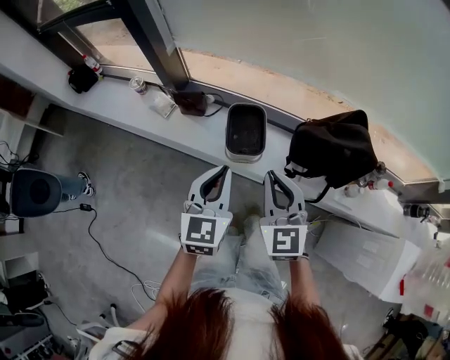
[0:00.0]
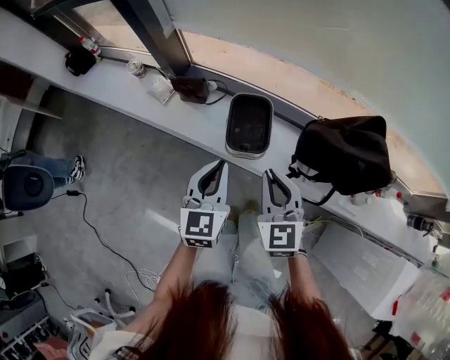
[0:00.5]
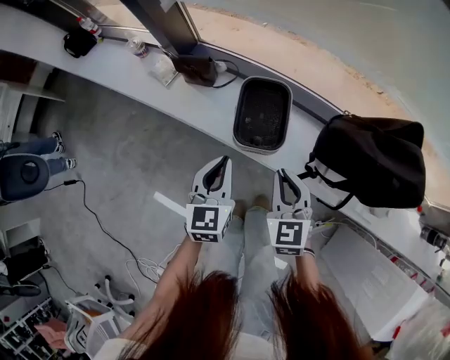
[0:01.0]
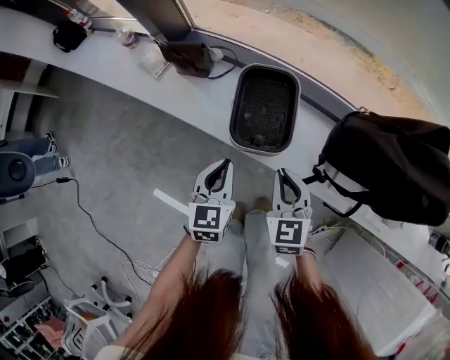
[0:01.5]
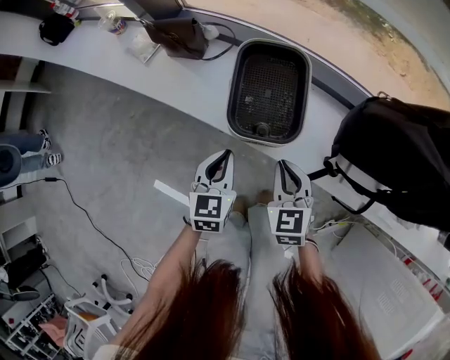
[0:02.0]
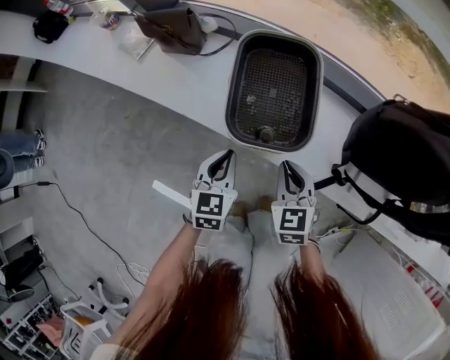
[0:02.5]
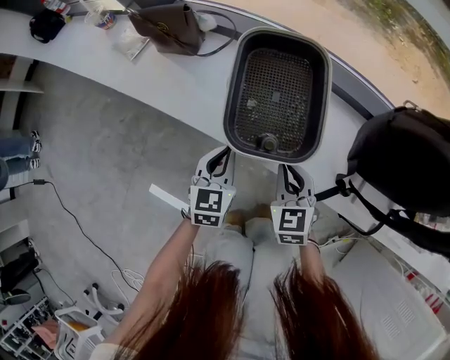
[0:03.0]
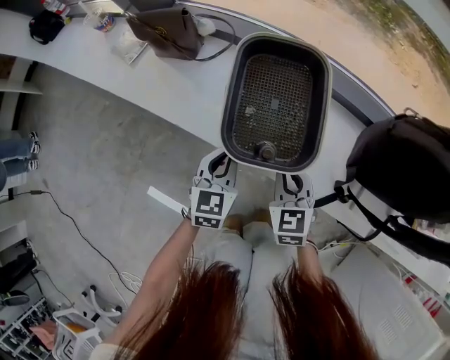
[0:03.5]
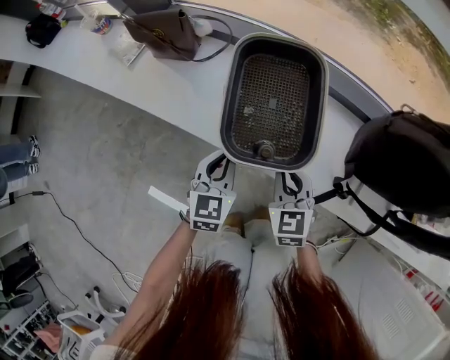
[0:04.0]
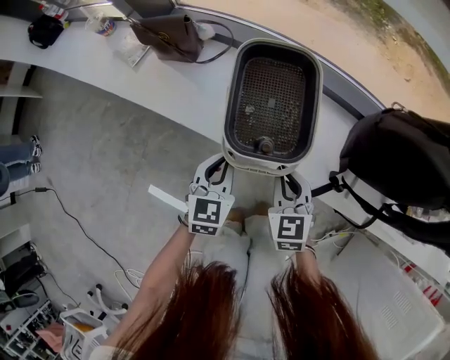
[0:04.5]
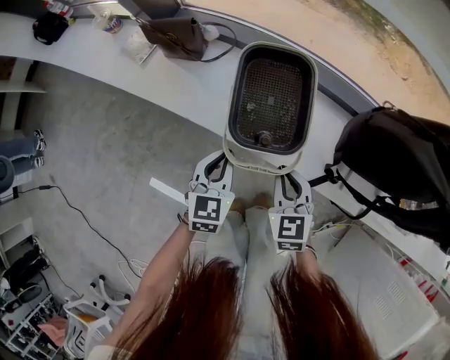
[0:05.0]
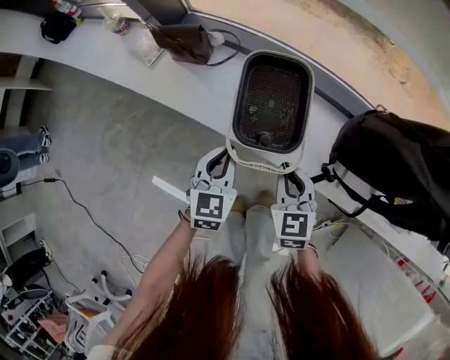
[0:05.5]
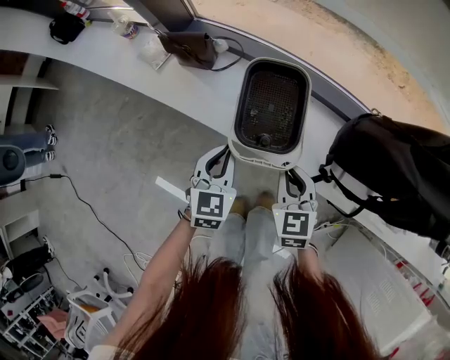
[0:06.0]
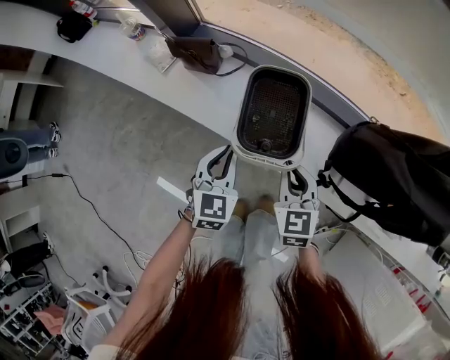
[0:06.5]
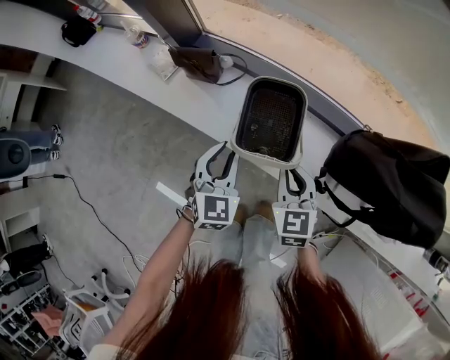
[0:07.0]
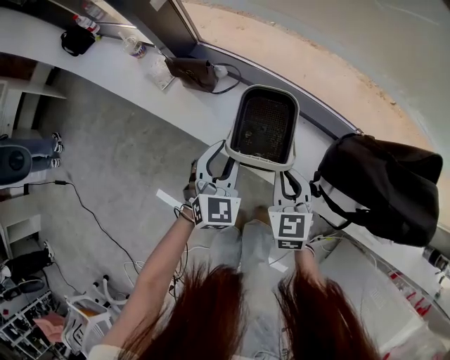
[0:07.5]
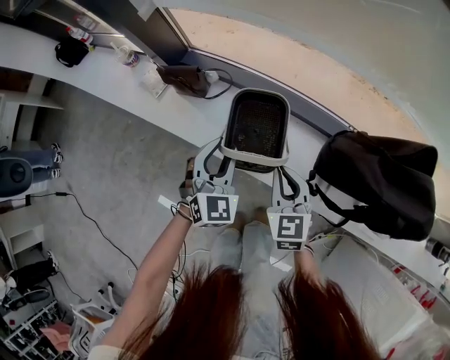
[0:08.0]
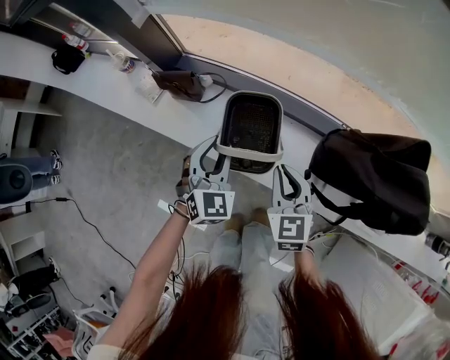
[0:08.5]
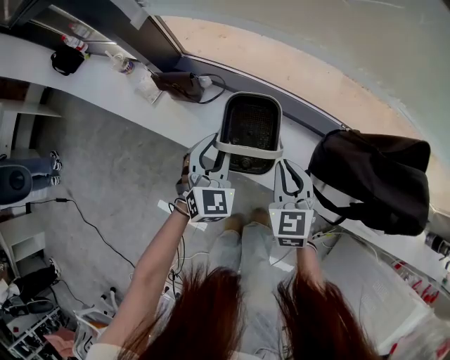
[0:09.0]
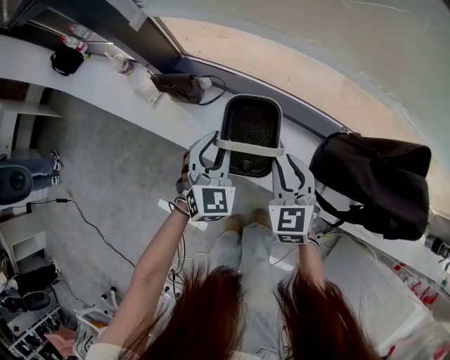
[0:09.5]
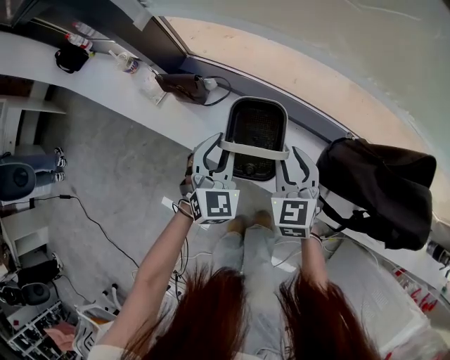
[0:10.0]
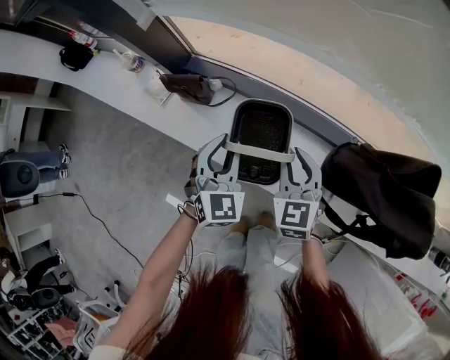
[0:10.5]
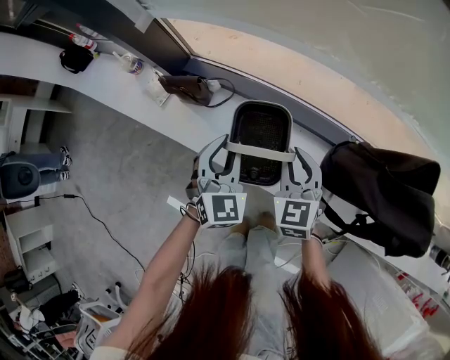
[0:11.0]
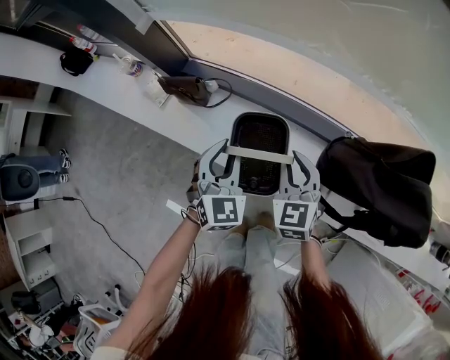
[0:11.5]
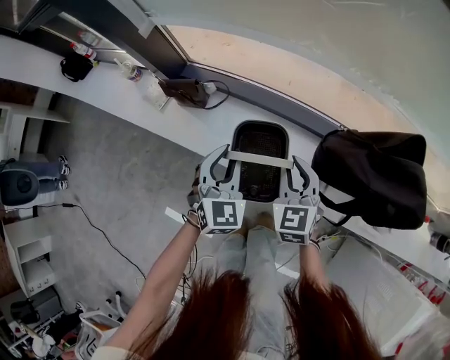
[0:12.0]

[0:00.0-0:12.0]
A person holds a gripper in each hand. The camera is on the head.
0:00.0 to 0:02.0: Both grippers travel together downward, roughly 40 cm. The right gripper rotates approximately 20 degrees.
0:02.0 to 0:04.0: The left gripper goes roughly 10 cm downward and forward; the right gripper moves downward, some 10 cm.
0:04.0 to 0:06.0: Both grippers travel together upward, about 15 cm.
0:06.0 to 0:08.0: The left gripper goes some 10 cm upward and forward, swivels about 30 degrees, and opens. The right gripper travels upward by some 5 cm.
0:08.0 to 0:10.0: The right gripper moves forward, approximately 5 cm, and opens its fingers.
0:10.0 to 0:12.0: The left gripper ends up roughly 5 cm from where it was. The right gripper shifts by roughly 5 cm.

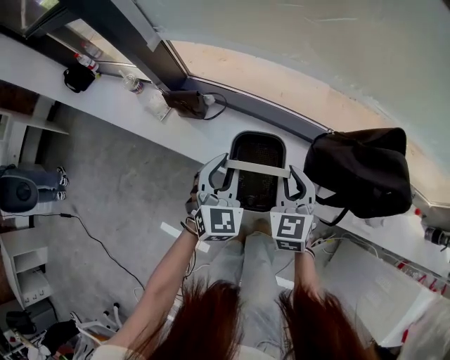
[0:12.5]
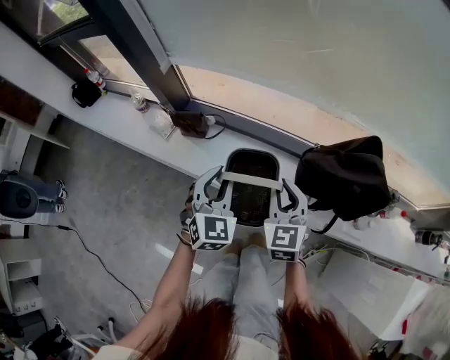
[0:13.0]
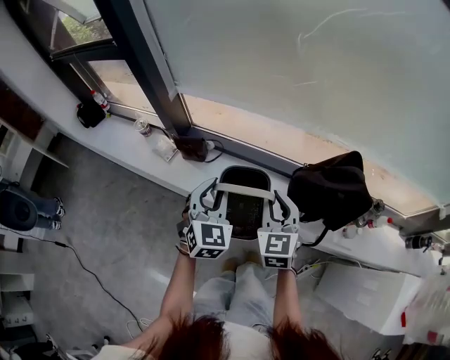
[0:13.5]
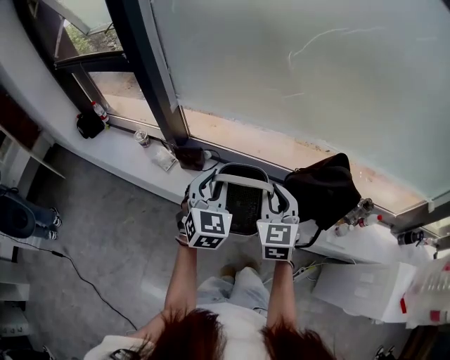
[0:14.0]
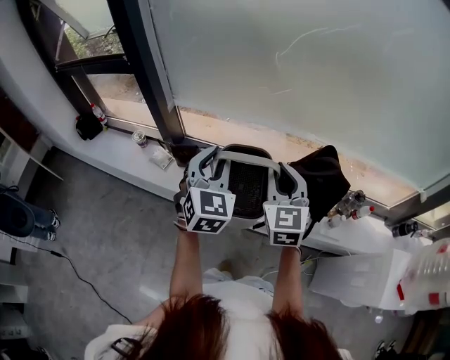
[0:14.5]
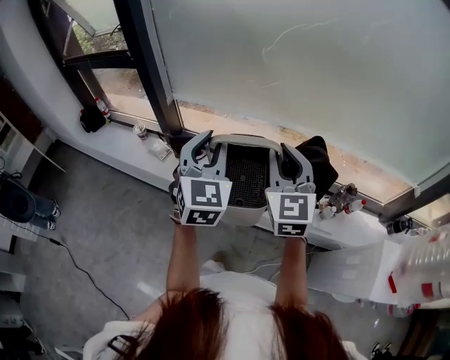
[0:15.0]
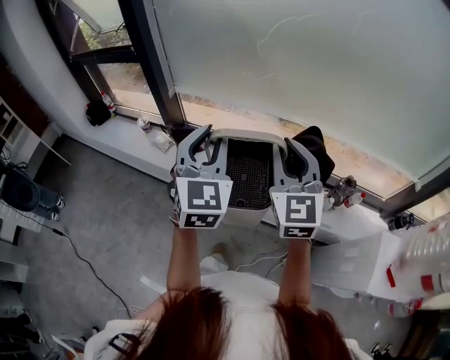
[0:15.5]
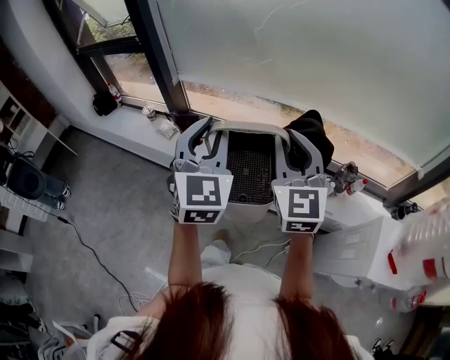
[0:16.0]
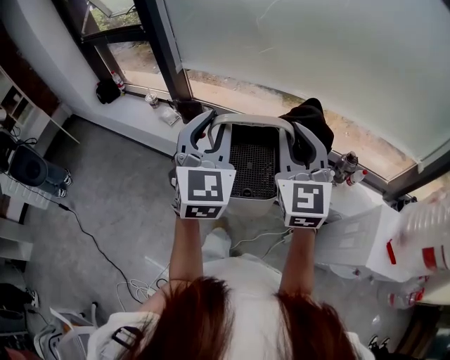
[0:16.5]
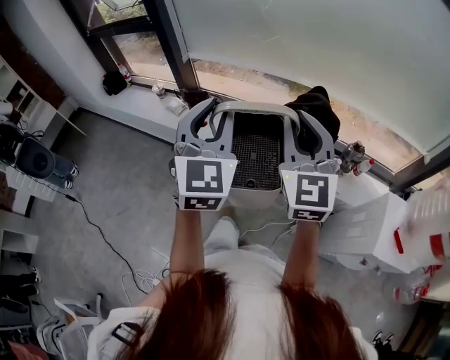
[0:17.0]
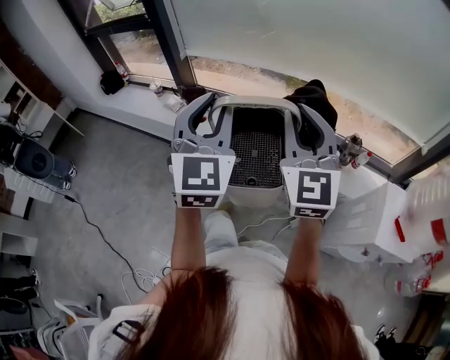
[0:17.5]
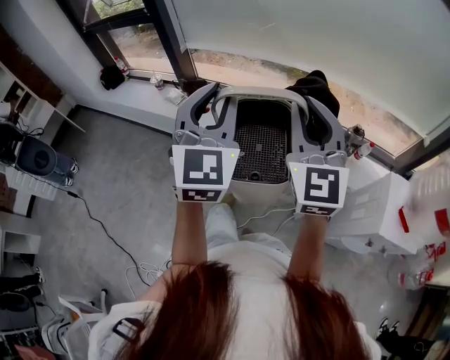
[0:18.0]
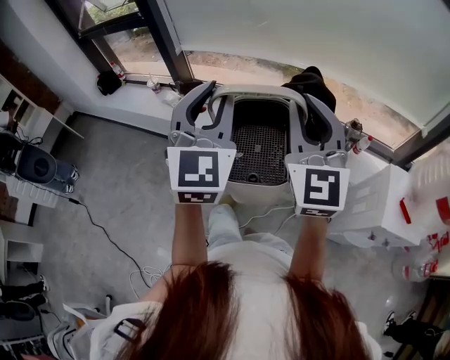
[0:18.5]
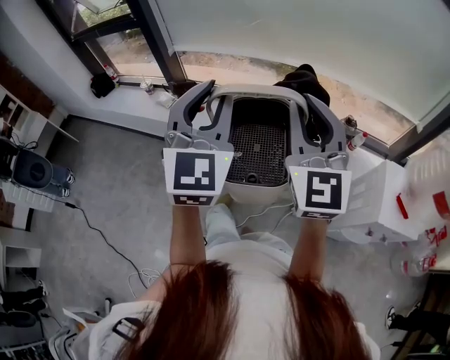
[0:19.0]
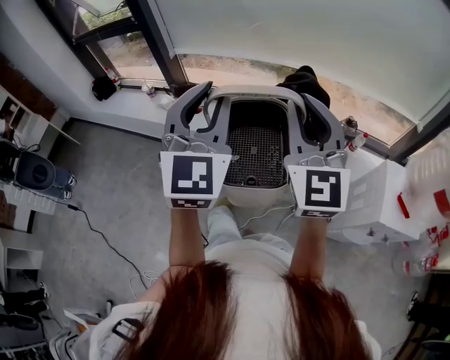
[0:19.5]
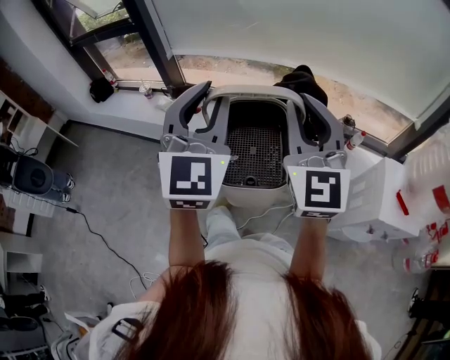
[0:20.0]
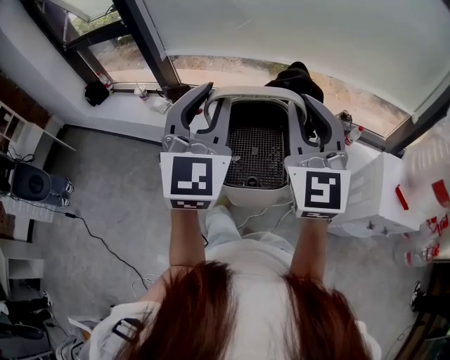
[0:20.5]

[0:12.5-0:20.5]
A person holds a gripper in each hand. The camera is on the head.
0:12.5 to 0:14.5: The grippers both shift upward by approximately 30 cm.
0:14.5 to 0:16.5: The left gripper goes roughly 25 cm backward and upward. Meanwhile the right gripper shifts about 25 cm backward, upward and to the right.
0:16.5 to 0:18.5: The two grippers go roughly 10 cm backward.
0:18.5 to 0:20.5: The grippers stay close to where they were, moving slightly.

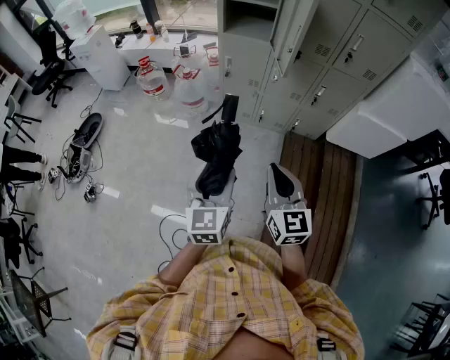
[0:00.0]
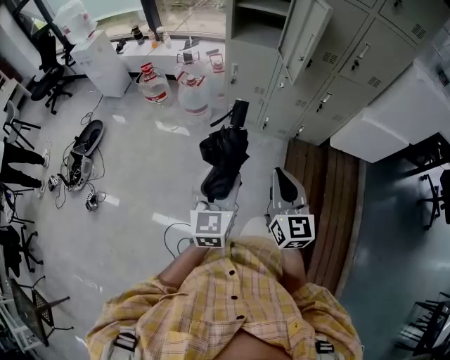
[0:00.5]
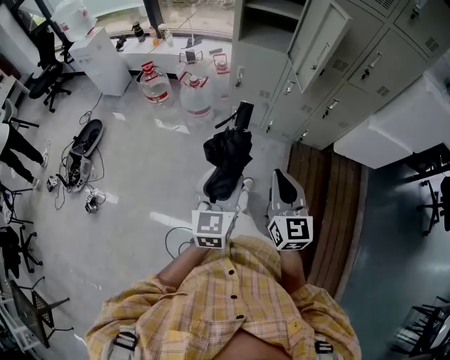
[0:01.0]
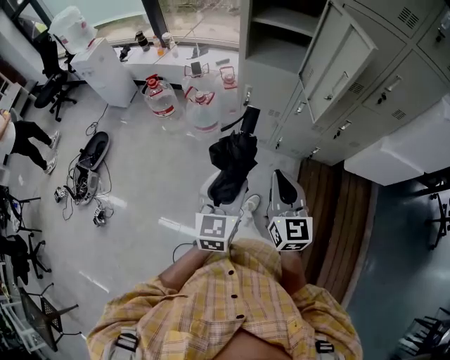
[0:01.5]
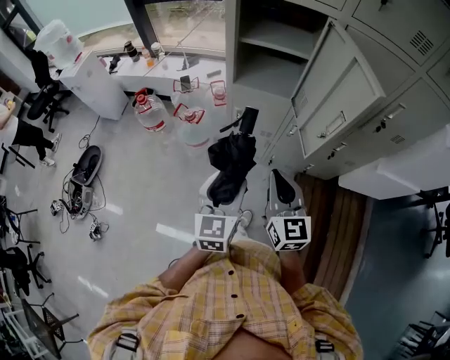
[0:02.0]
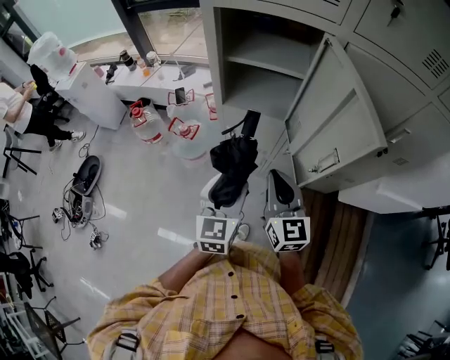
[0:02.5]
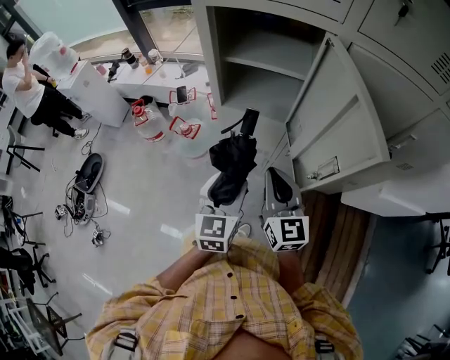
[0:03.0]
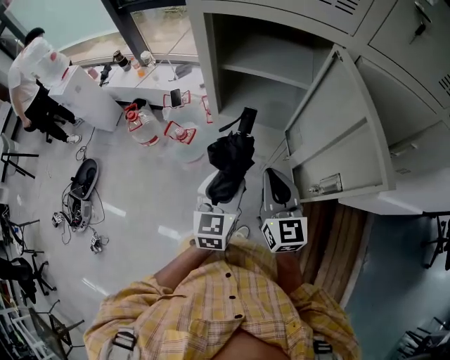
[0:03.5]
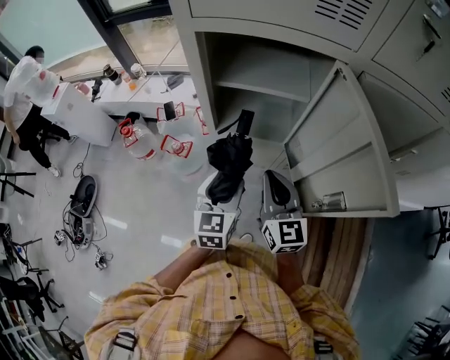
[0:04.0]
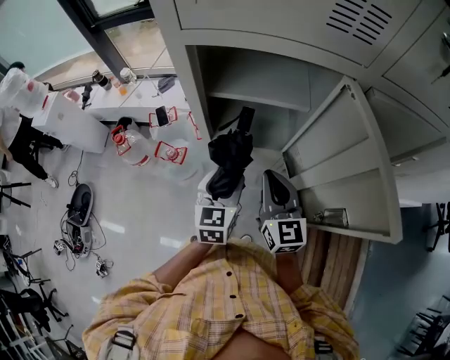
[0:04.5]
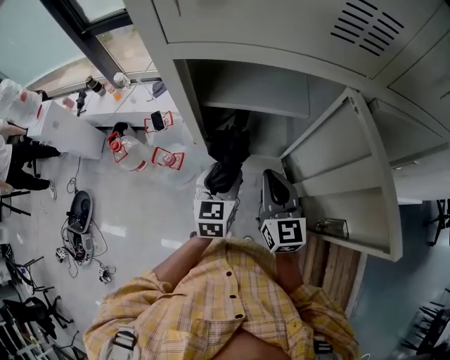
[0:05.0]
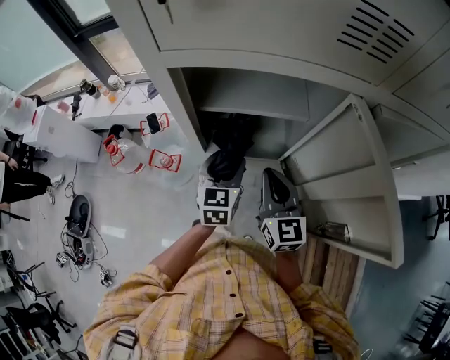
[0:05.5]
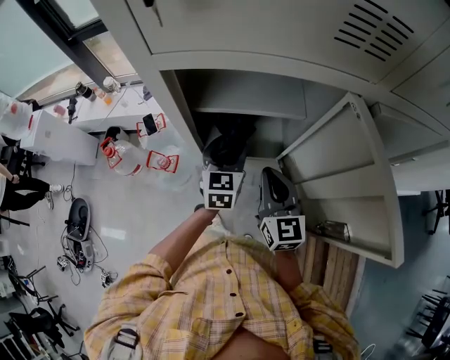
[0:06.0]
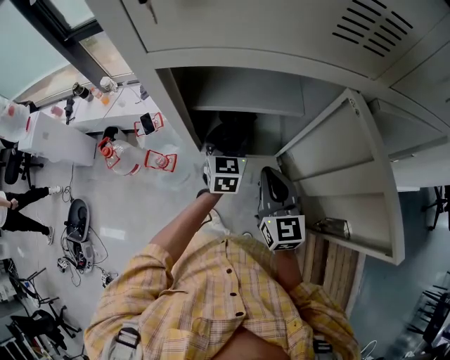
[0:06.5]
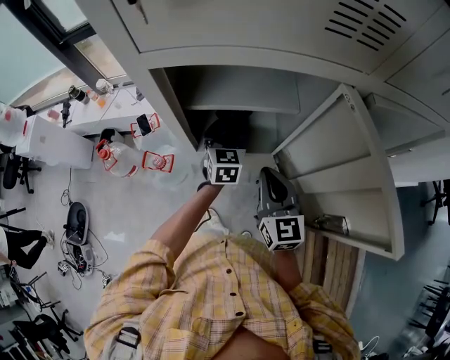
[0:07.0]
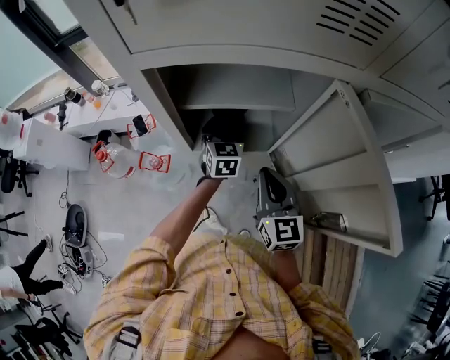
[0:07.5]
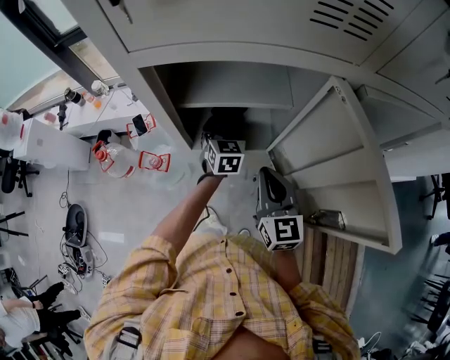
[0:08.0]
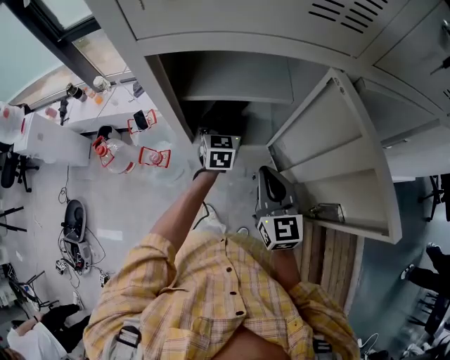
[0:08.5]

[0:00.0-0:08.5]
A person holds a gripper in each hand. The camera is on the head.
0:00.0 to 0:02.0: Both grippers travel together forward, about 35 cm.
0:02.0 to 0:04.0: Both grippers travel together forward, some 20 cm.
0:04.0 to 0:06.5: The left gripper travels forward by approximately 20 cm. Meanwhile the right gripper goes about 10 cm forward.
0:06.5 to 0:08.5: There are only small adjustments of the grippers.
